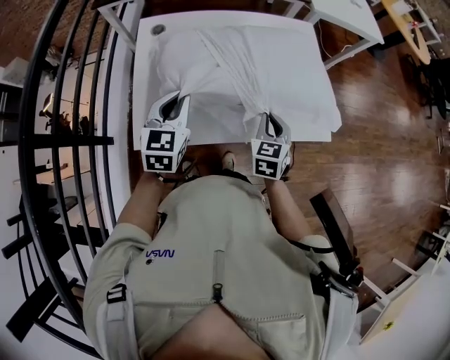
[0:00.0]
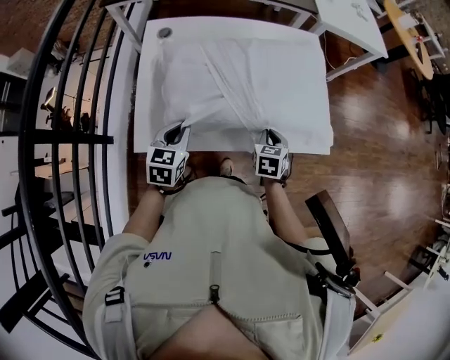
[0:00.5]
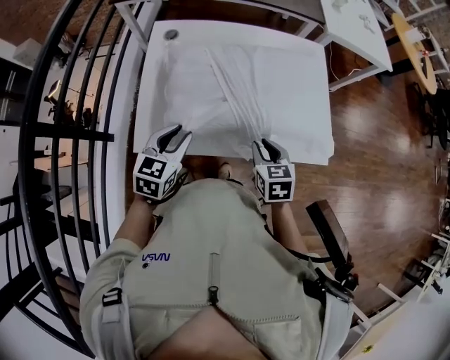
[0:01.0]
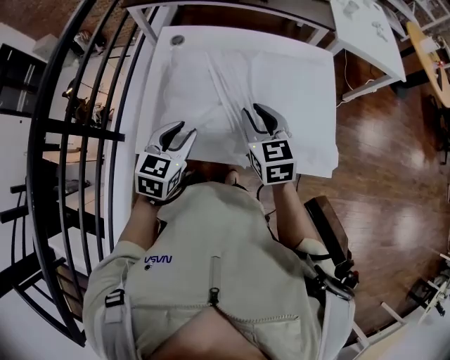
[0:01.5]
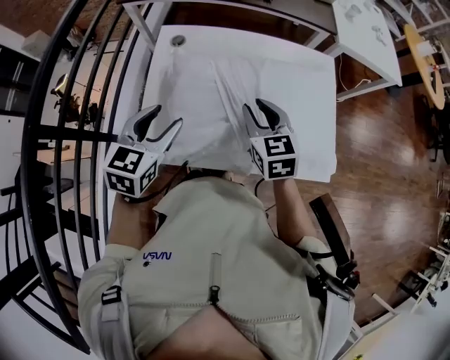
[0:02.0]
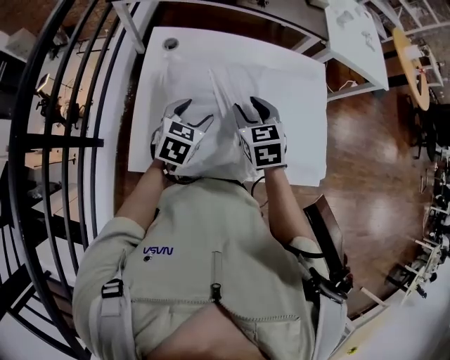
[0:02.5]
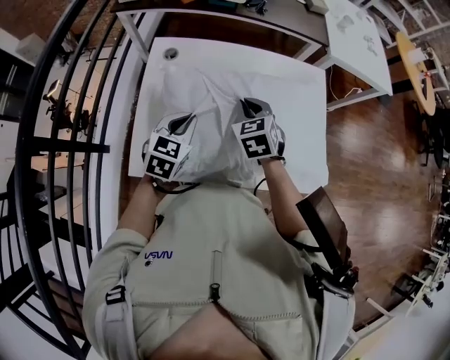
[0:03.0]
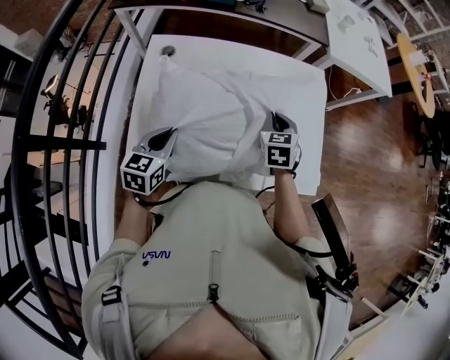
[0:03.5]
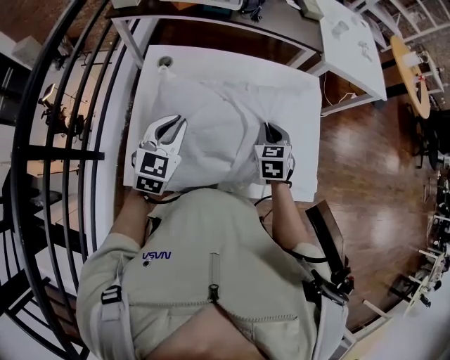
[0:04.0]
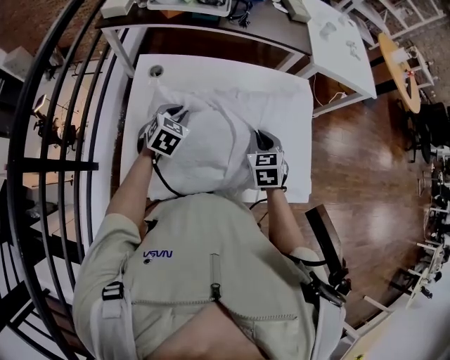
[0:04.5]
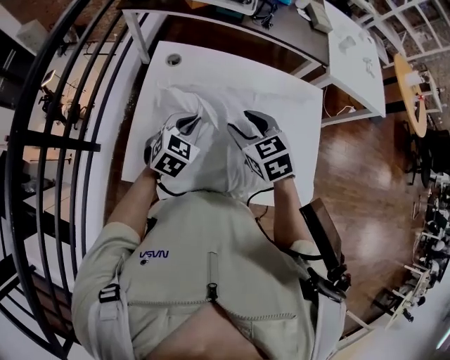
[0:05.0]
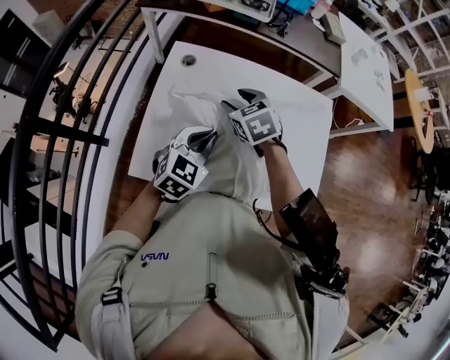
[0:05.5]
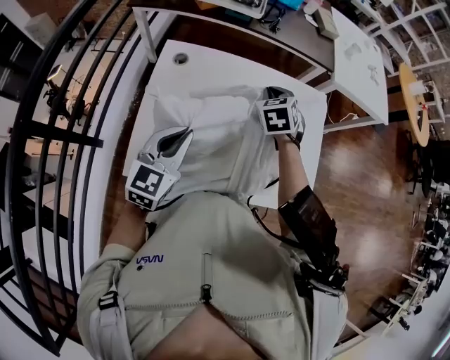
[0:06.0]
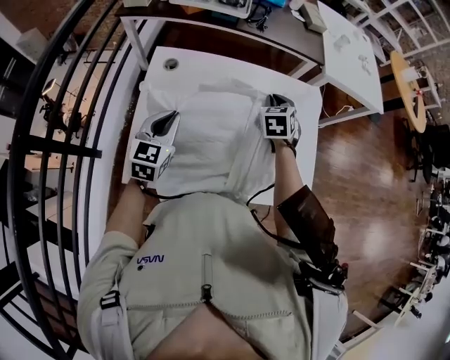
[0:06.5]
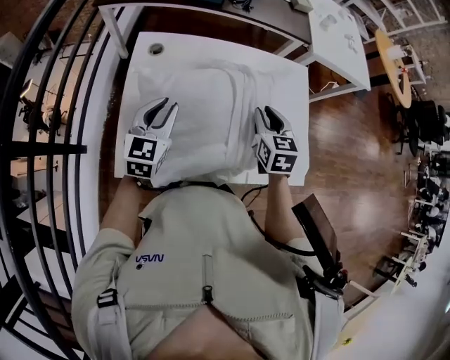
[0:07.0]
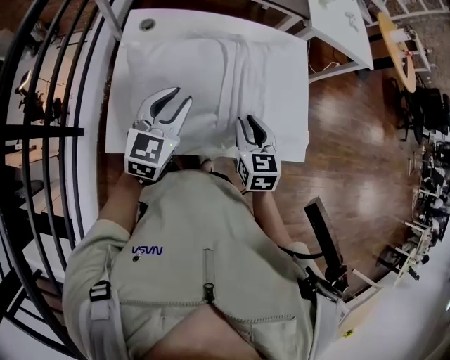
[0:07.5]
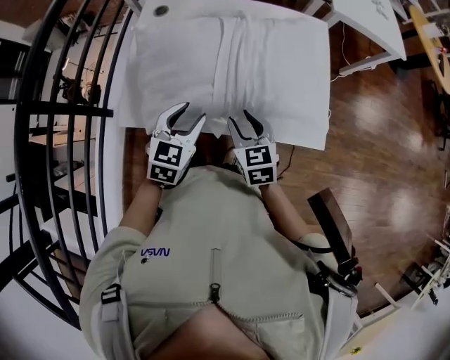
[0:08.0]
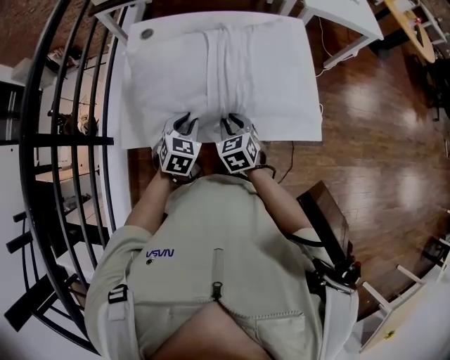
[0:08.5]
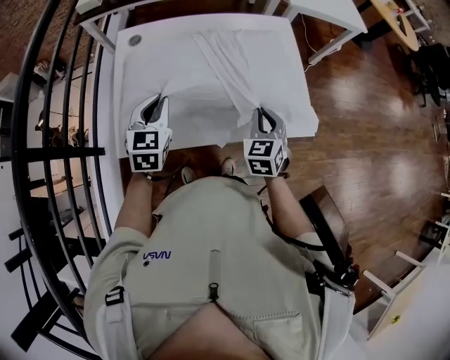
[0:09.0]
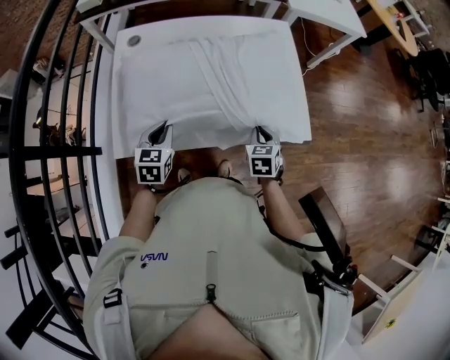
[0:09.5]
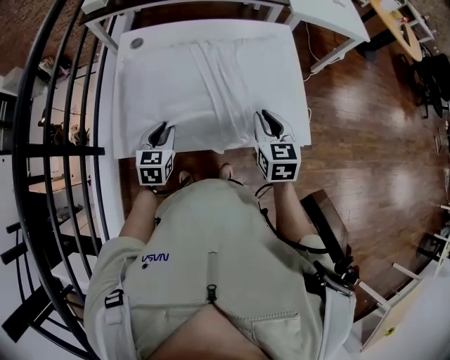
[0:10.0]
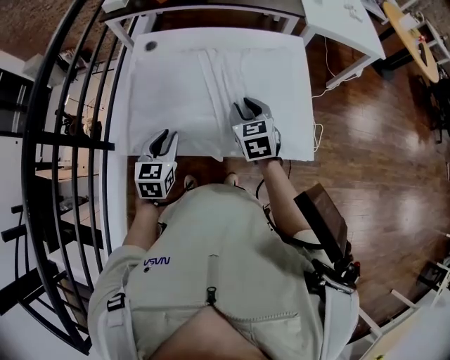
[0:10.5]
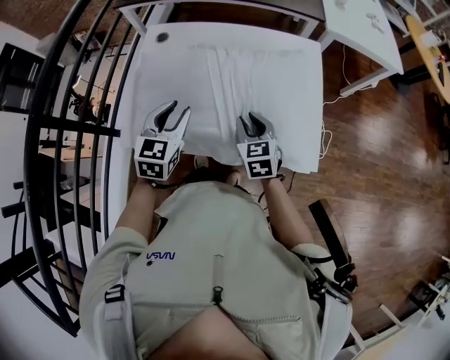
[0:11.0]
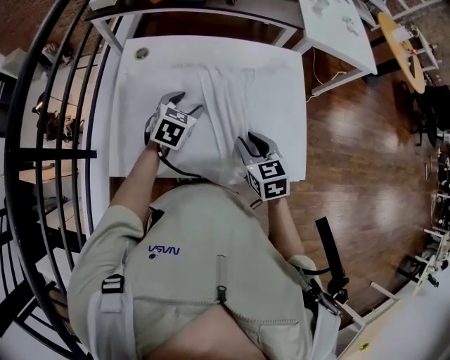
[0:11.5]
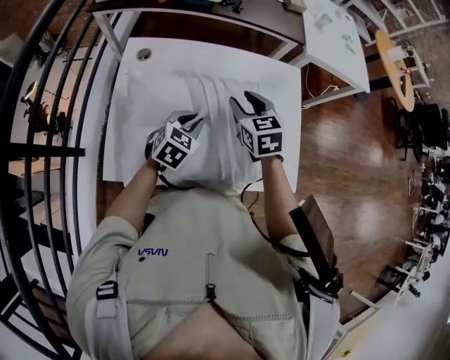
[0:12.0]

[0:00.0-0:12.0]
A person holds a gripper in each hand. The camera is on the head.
0:00.0 to 0:02.0: The right gripper is displaced to the left, upward and forward by some 15 cm, rotates roughly 30 degrees, and opens its fingers; the left gripper goes downward and returns, some 10 cm each way, and opens up.
0:02.0 to 0:04.0: The left gripper heads forward, covering about 10 cm, and closes; the right gripper heads to the right, downward and forward, covering approximately 15 cm, rotates some 20 degrees, and closes its fingers.
0:04.0 to 0:06.0: The right gripper moves forward, to the left and upward, roughly 15 cm, and opens, then closes once more. Meanwhile the left gripper moves about 10 cm downward and comes back.
0:06.0 to 0:08.0: The right gripper heads backward, covering approximately 30 cm, swivels some 30 degrees, and opens up; the left gripper travels to the right, backward and downward by some 15 cm, and opens.
0:08.0 to 0:10.0: The left gripper goes up and down, some 10 cm each way, reversing 2 times; the right gripper moves to the right and upward, about 10 cm, and closes up.
0:10.0 to 0:12.0: The left gripper shifts about 15 cm forward and to the right, turns by some 20 degrees, and opens, then closes again, while the right gripper heads forward and to the left, covering roughly 20 cm, and opens its fingers.

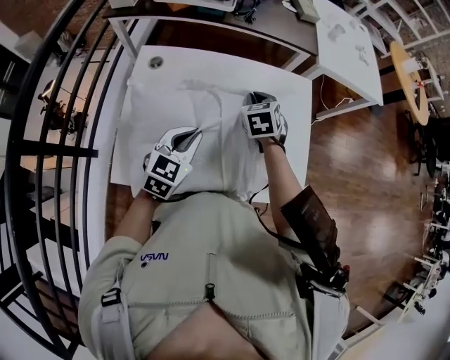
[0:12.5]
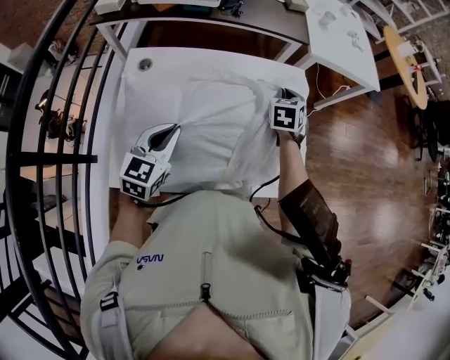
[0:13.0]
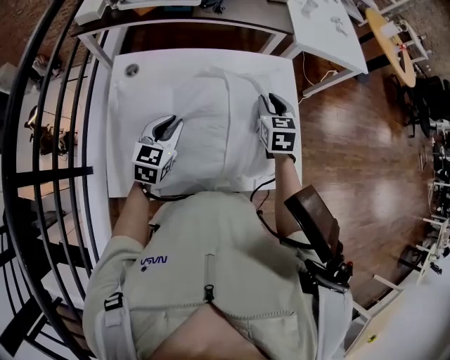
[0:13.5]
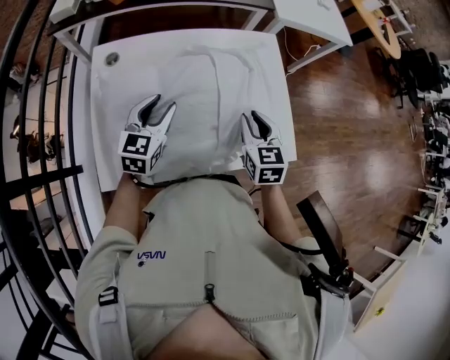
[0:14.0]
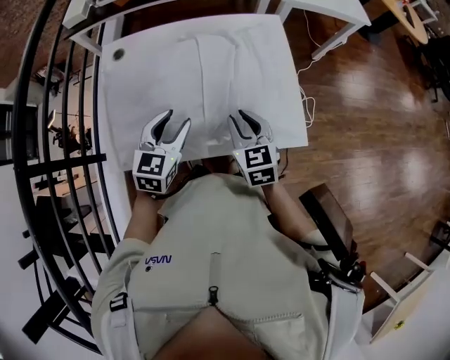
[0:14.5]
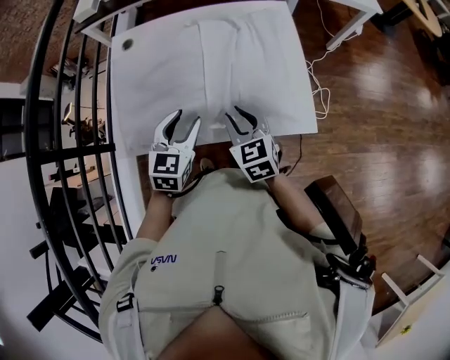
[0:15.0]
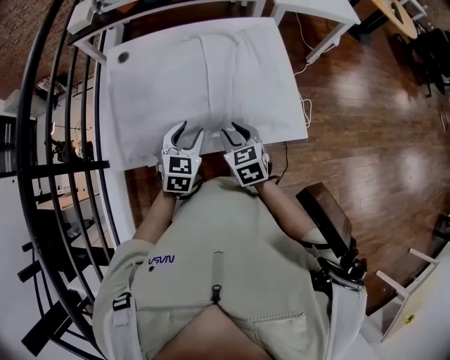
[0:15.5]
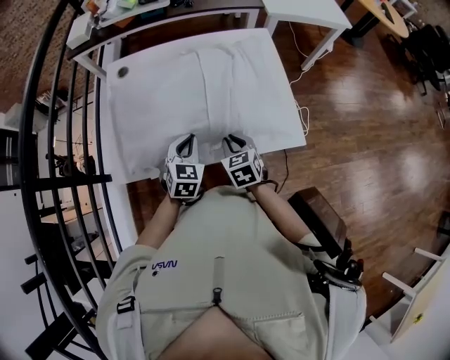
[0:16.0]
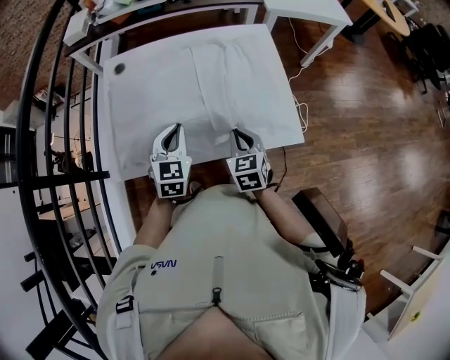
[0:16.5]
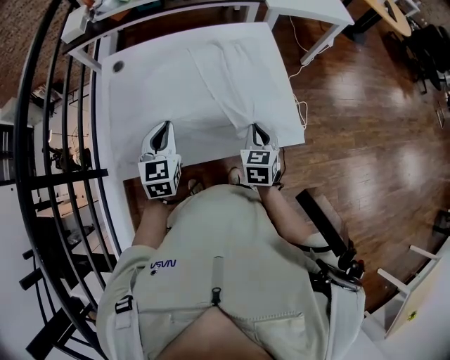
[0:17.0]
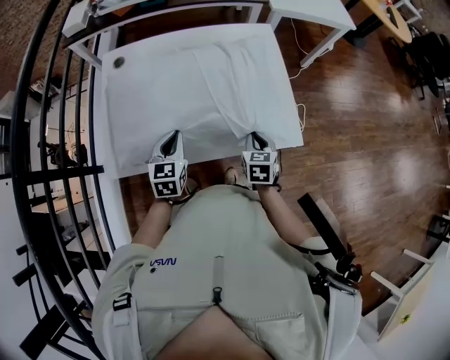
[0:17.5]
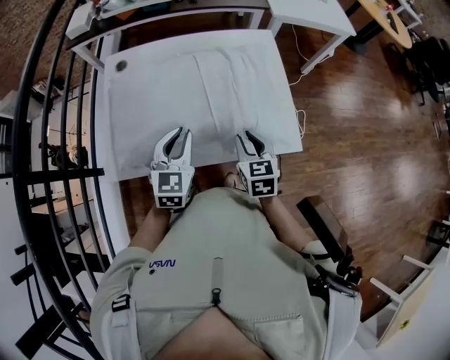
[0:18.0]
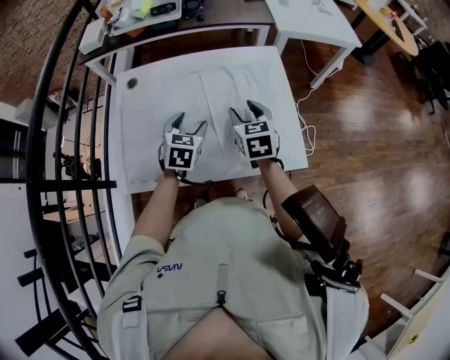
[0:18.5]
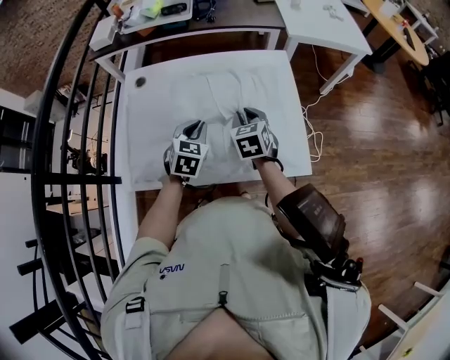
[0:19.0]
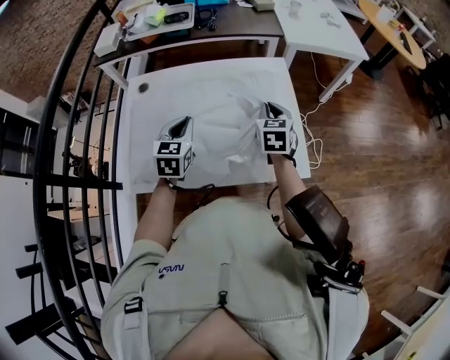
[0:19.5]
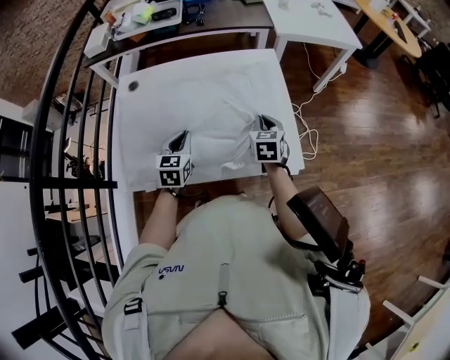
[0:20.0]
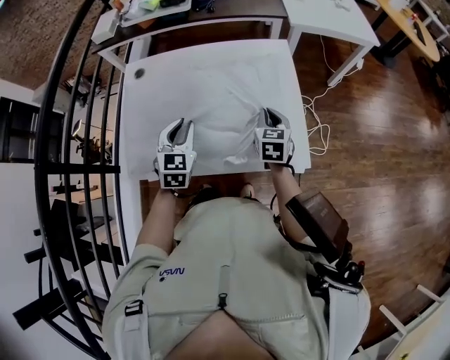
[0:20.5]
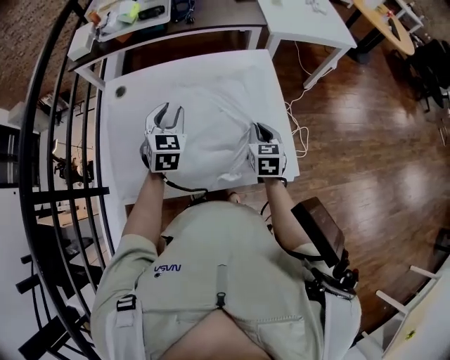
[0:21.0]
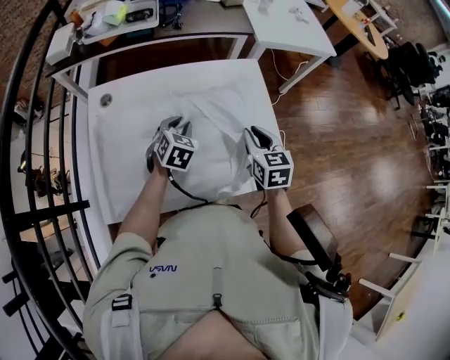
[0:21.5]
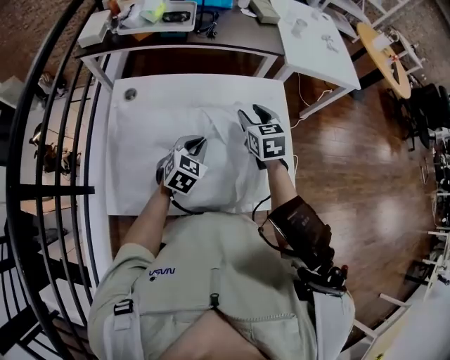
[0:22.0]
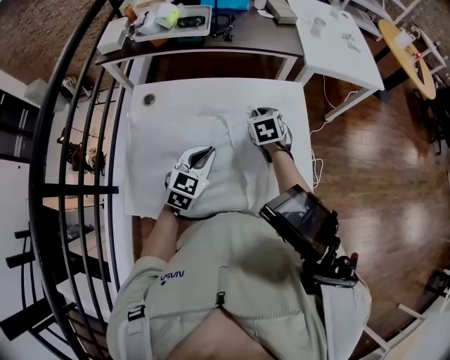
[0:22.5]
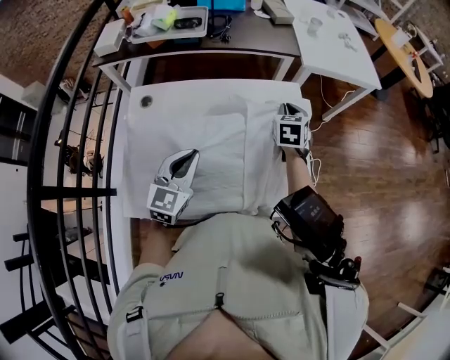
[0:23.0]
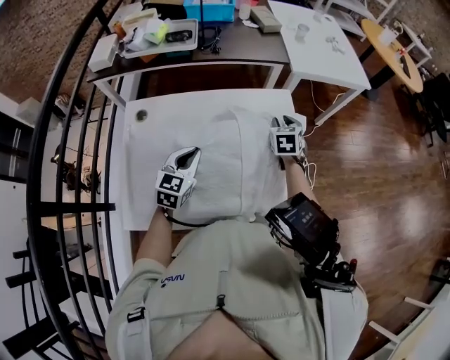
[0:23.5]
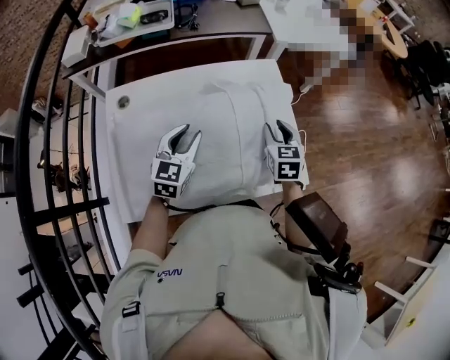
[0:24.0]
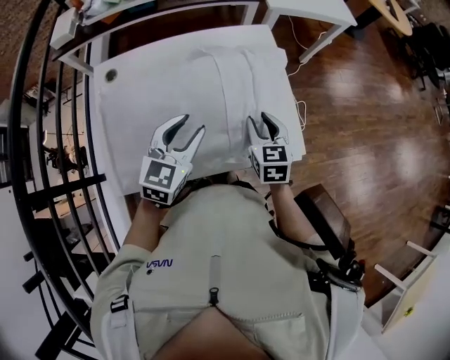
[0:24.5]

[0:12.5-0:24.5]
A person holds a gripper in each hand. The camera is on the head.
0:12.5 to 0:14.5: The right gripper moves backward and to the right, some 25 cm, and turns by approximately 20 degrees. The left gripper goes approximately 10 cm to the right and backward, and opens up.
0:14.5 to 0:16.5: The left gripper reaches roughly 10 cm downward, then returns, and closes its fingers.
0:16.5 to 0:18.5: The right gripper heads forward and upward, covering about 15 cm, and opens its fingers, while the left gripper goes roughly 10 cm forward, and opens up.
0:18.5 to 0:20.5: The right gripper goes some 10 cm to the right and downward, and closes. The left gripper moves up and down over some 10 cm, changing direction 2 times, and closes its fingers.
0:20.5 to 0:22.5: The left gripper goes roughly 5 cm forward; the right gripper is displaced forward and to the left by about 20 cm, turns by roughly 20 degrees, and opens, then closes again.
0:22.5 to 0:24.5: The right gripper moves backward and to the right, some 25 cm, turns by about 20 degrees, and opens up, while the left gripper shifts roughly 10 cm backward and upward, and opens.

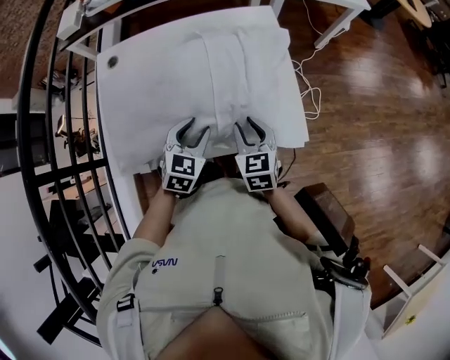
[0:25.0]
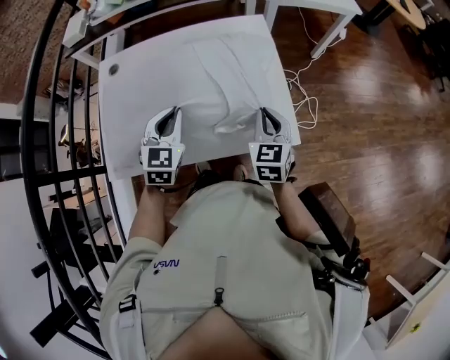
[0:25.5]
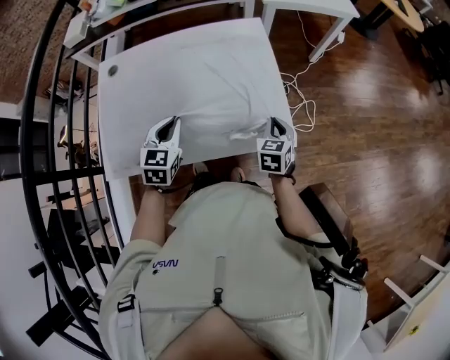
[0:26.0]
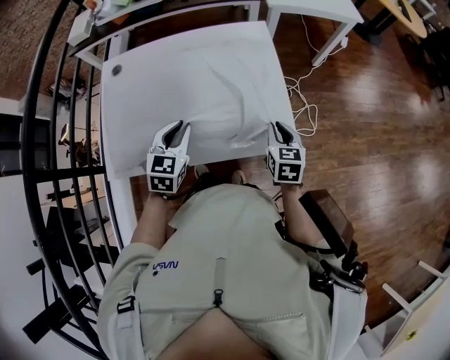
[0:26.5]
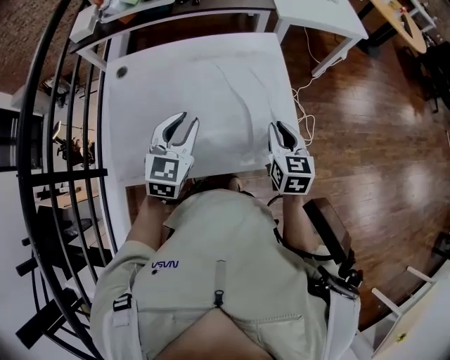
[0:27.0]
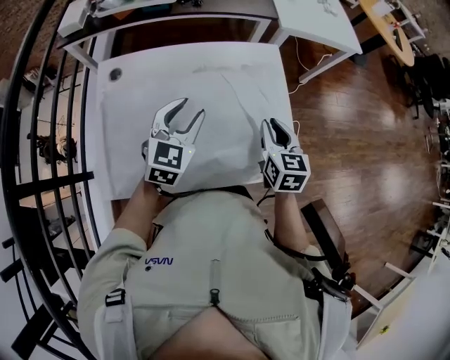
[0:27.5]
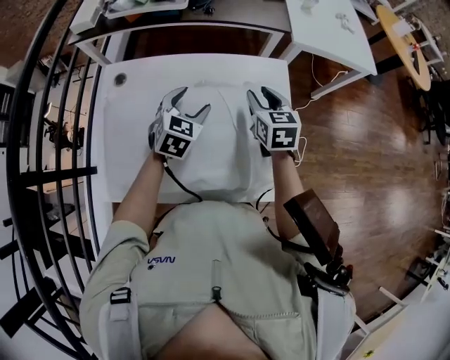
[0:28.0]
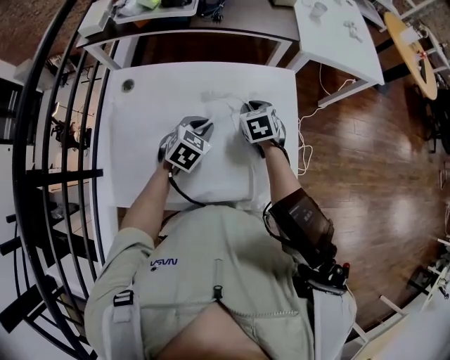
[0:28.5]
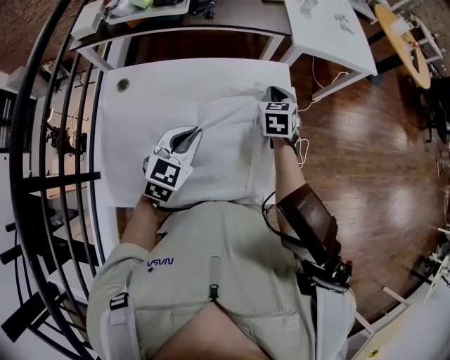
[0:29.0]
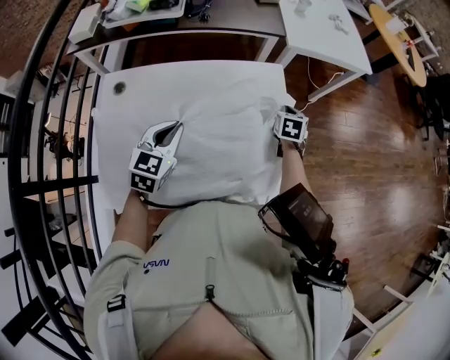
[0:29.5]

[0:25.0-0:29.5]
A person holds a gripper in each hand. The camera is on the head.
0:25.0 to 0:27.0: The left gripper swings up and down, approximately 10 cm each way, with 2 reversals, while the right gripper shifts approximately 10 cm to the right, forward and upward.
0:27.0 to 0:29.5: The right gripper is displaced forward by roughly 25 cm, and changes its angle by some 30 degrees, while the left gripper goes roughly 10 cm forward and to the left, and opens and closes again.
